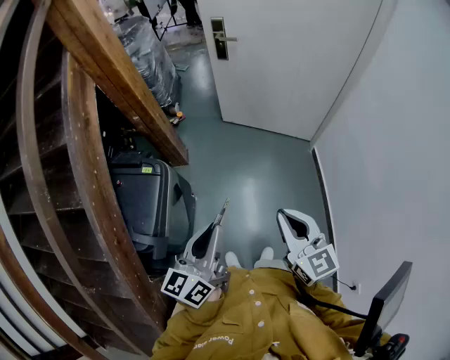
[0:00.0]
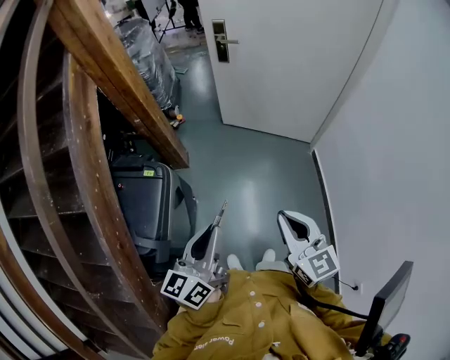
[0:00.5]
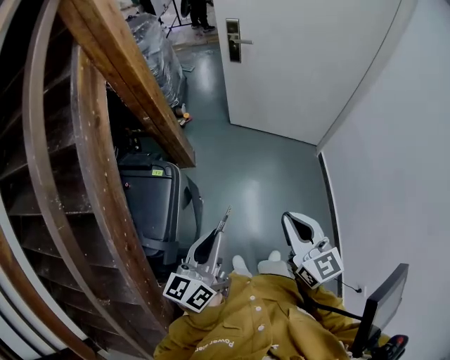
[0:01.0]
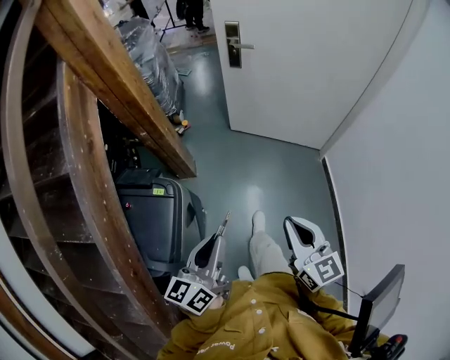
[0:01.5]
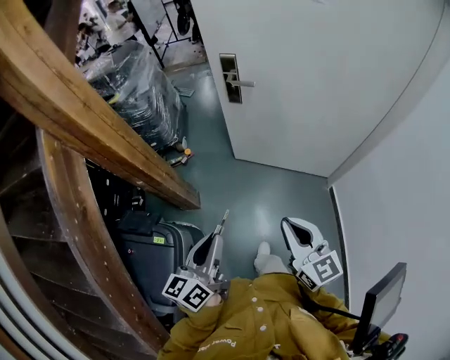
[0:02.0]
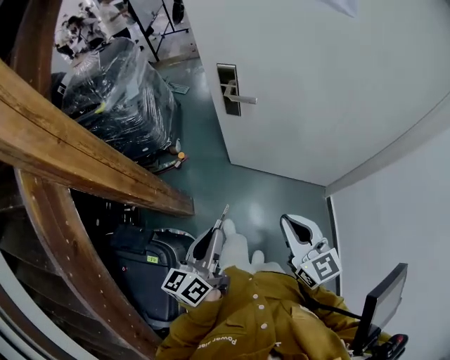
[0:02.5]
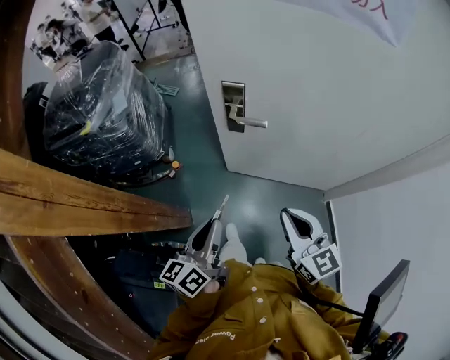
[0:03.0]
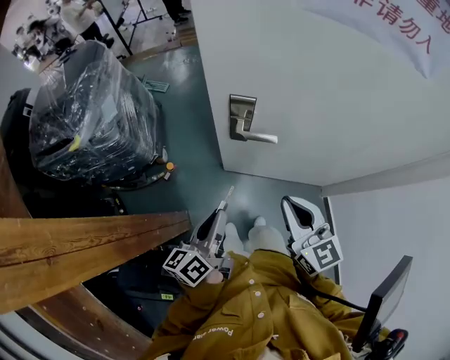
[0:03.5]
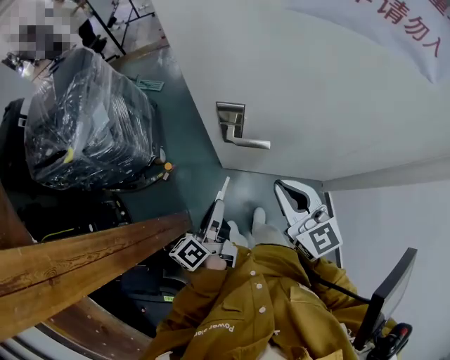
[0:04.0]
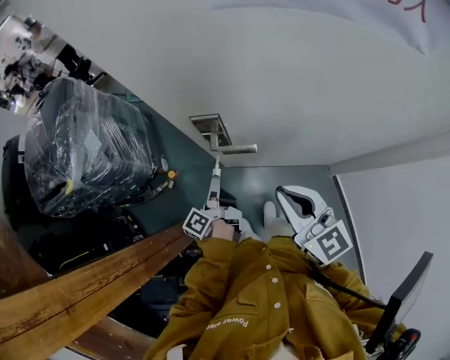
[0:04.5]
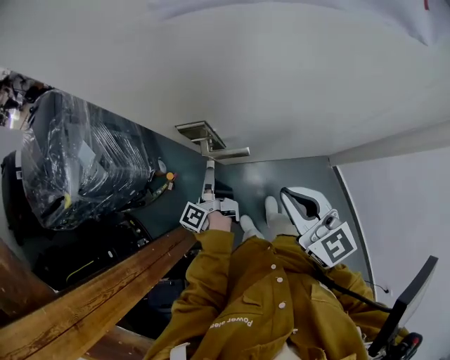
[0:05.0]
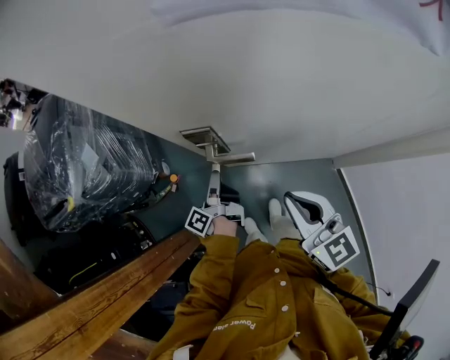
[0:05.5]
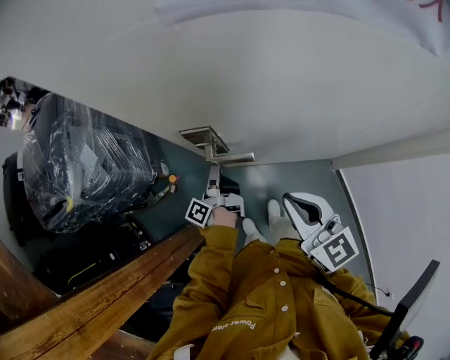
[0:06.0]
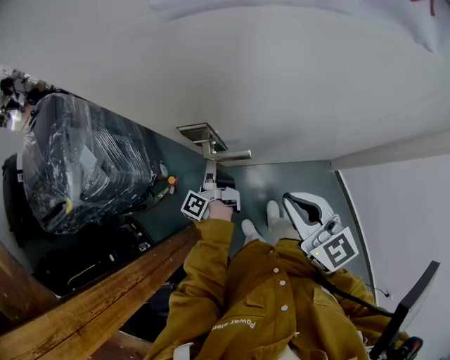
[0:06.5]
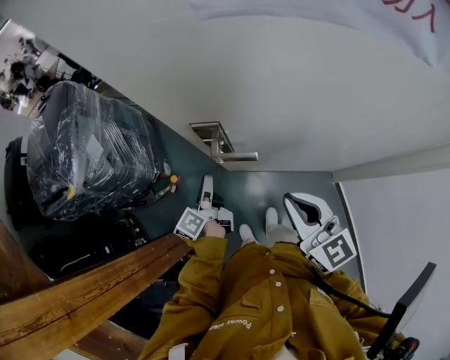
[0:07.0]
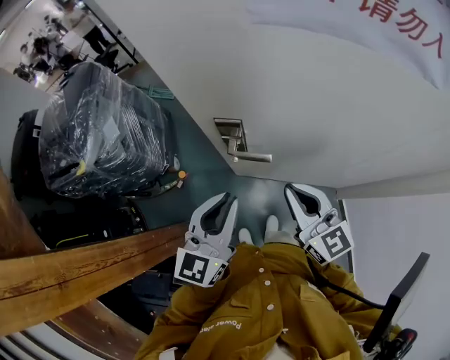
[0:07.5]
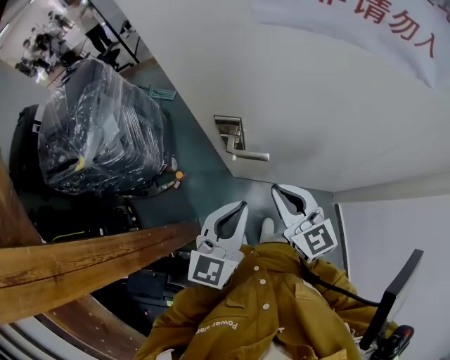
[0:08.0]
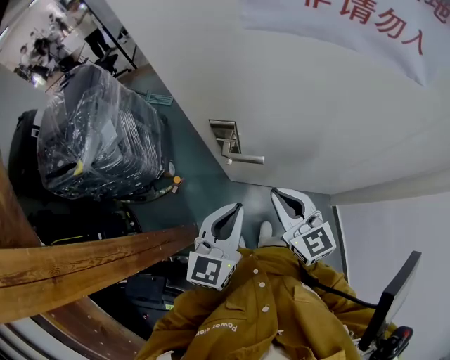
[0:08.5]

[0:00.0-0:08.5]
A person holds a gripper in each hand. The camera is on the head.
0:00.0 to 0:02.0: Both grippers travel together forward, about 35 cm.
0:02.0 to 0:04.0: The pair of grippers is taken forward, roughly 50 cm. The left gripper swivels some 30 degrees.
0:04.0 to 0:06.5: The right gripper goes about 5 cm to the right. The left gripper moves forward and downward, about 20 cm.
0:06.5 to 0:08.5: The left gripper heads upward and backward, covering roughly 25 cm, and rolls clockwise, seen from behind, by roughly 80 degrees.

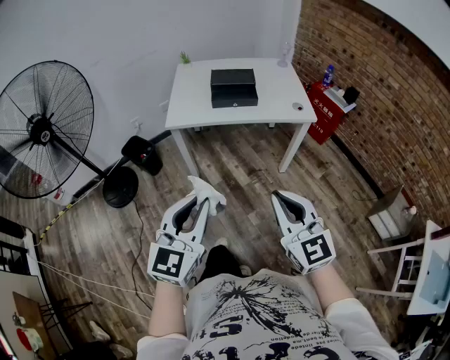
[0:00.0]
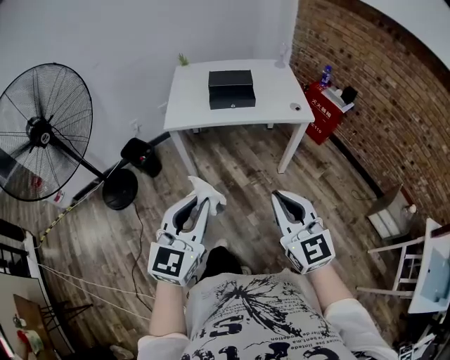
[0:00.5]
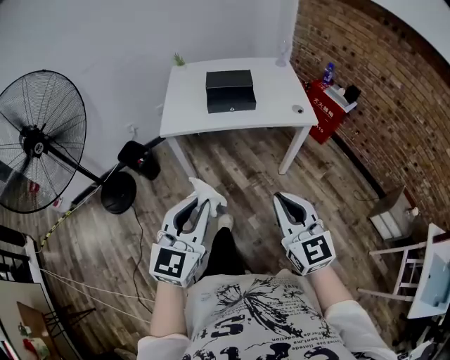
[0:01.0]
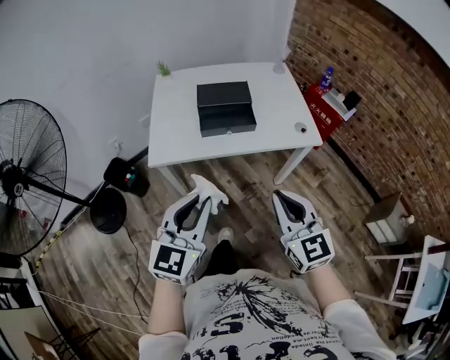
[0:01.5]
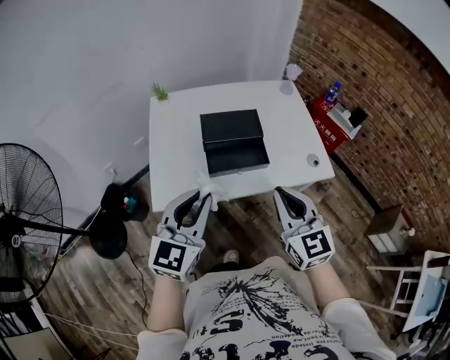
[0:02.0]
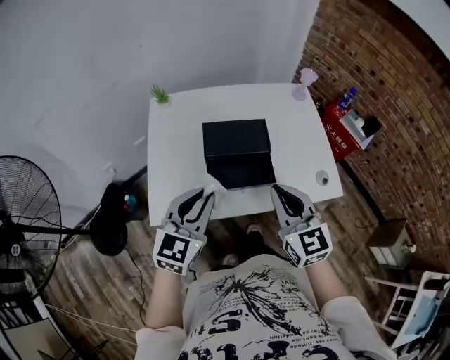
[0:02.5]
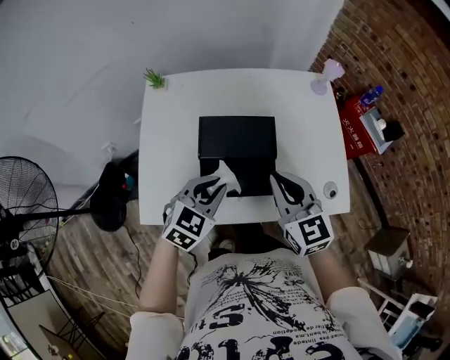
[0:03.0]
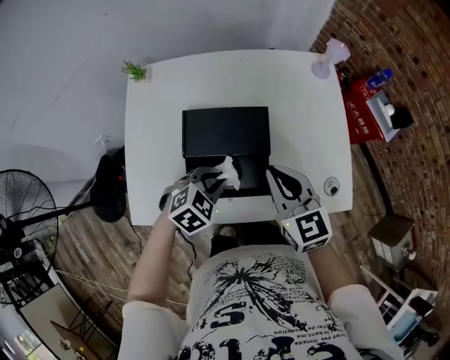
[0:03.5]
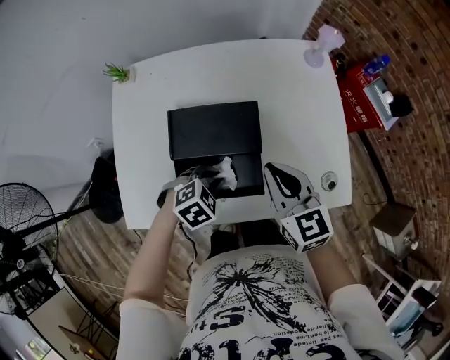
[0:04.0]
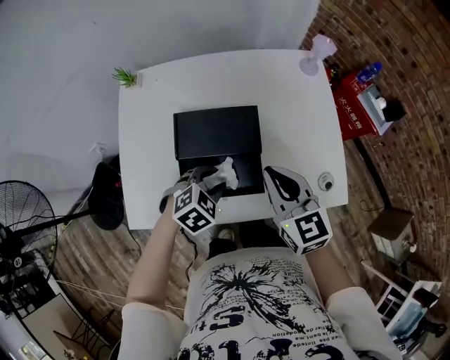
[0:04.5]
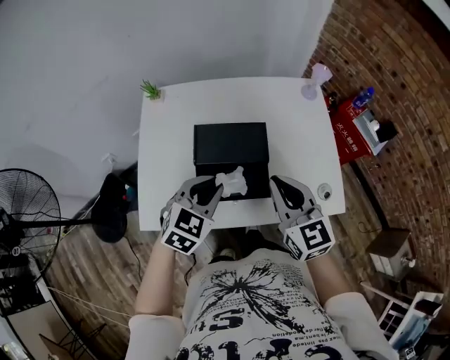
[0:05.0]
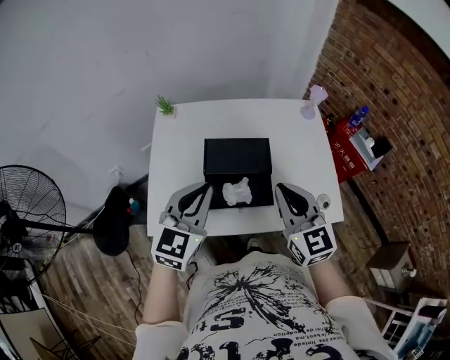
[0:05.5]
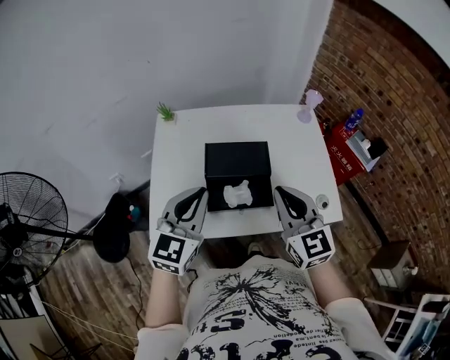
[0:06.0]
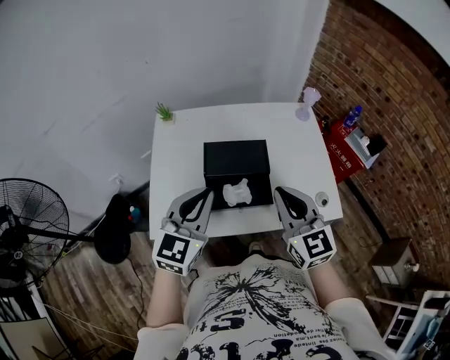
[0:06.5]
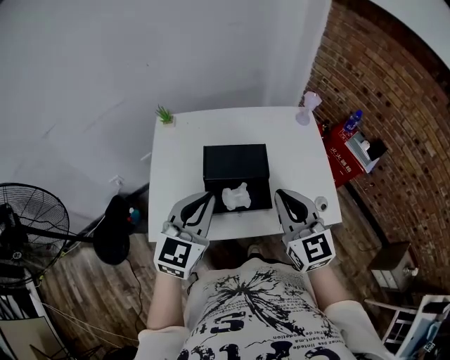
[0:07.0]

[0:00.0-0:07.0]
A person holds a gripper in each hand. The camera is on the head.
0:00.0 to 0:02.0: The two grippers travel together, forward, some 50 cm.
0:02.0 to 0:03.5: Both grippers travel together forward and downward, some 35 cm. The left gripper points its fingers approximately 50 degrees further downward.
0:03.5 to 0:05.0: The left gripper travels upward by about 15 cm, and turns by about 20 degrees. Meanwhile the right gripper moves upward and backward, roughly 10 cm.
0:05.0 to 0:07.0: The right gripper travels upward and backward by some 10 cm. Meanwhile the left gripper moves upward and backward, some 15 cm, and swivels approximately 20 degrees.

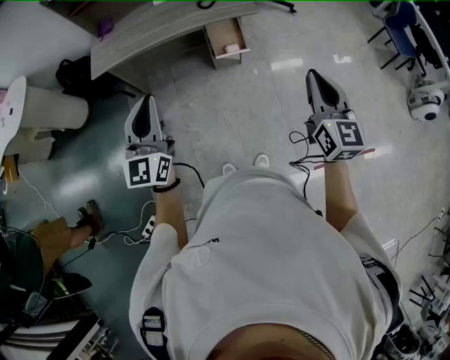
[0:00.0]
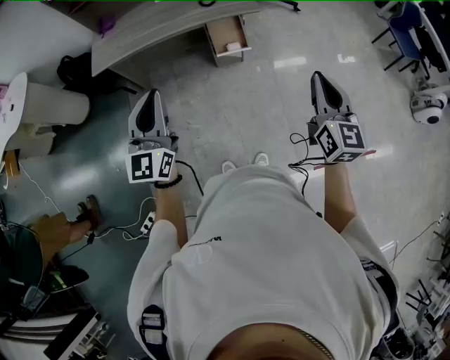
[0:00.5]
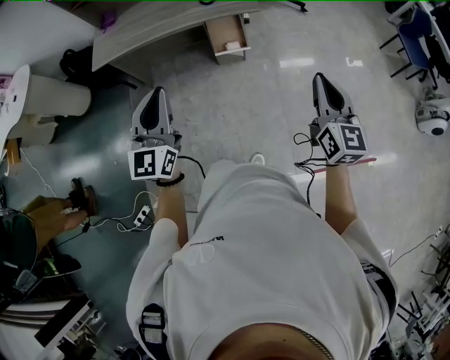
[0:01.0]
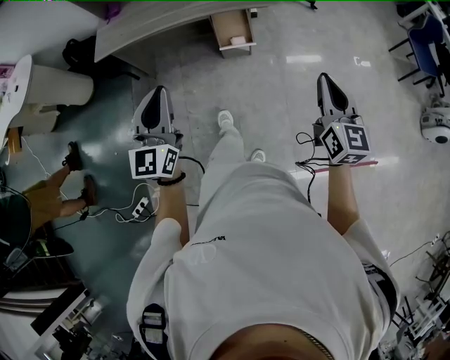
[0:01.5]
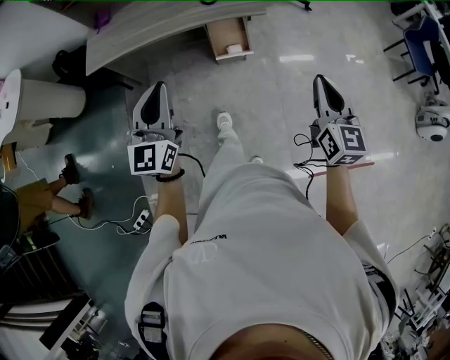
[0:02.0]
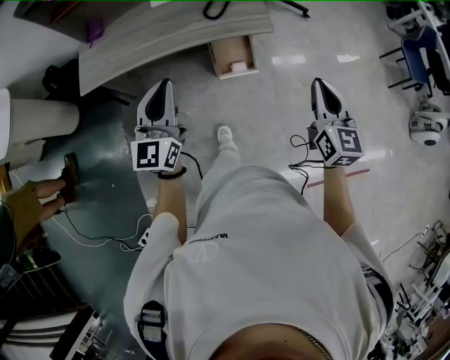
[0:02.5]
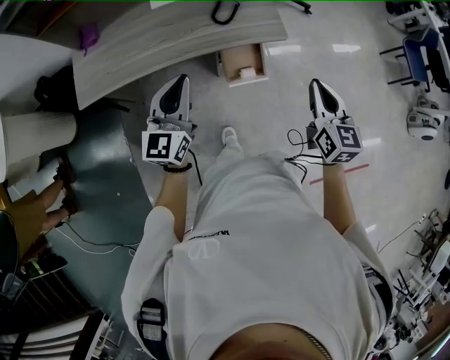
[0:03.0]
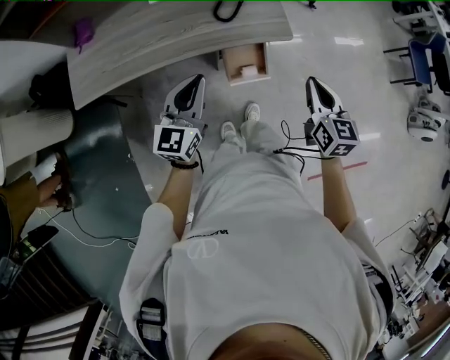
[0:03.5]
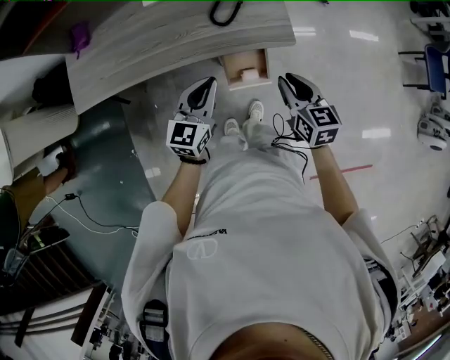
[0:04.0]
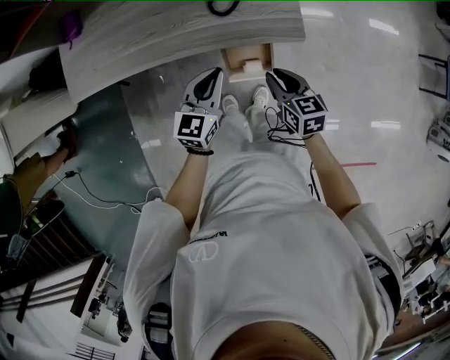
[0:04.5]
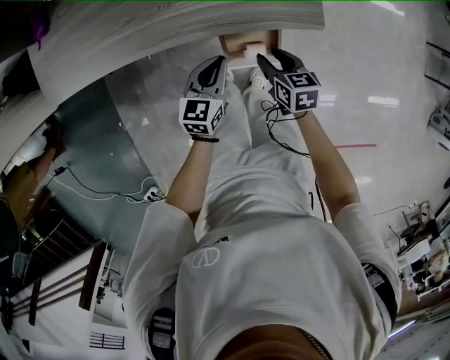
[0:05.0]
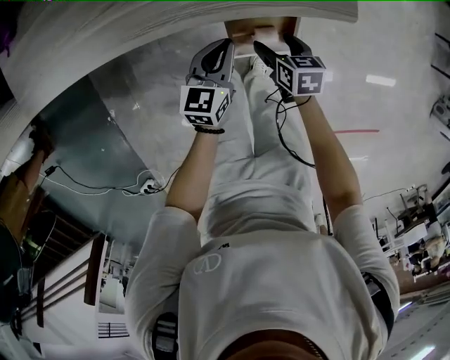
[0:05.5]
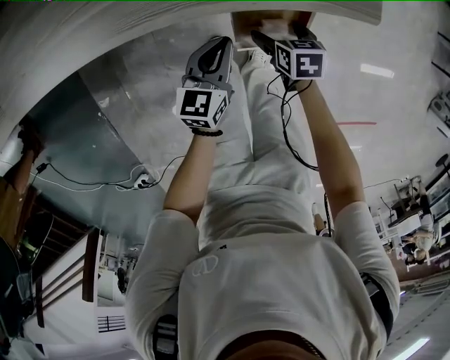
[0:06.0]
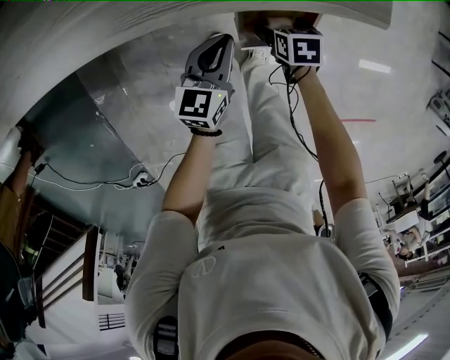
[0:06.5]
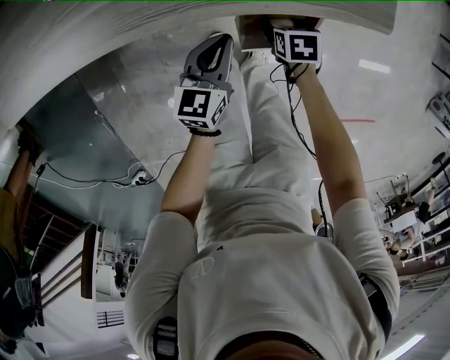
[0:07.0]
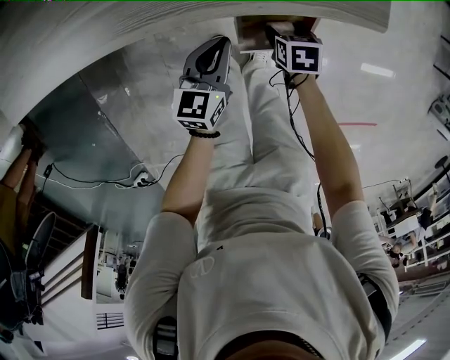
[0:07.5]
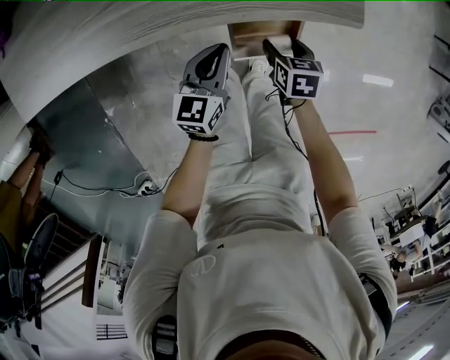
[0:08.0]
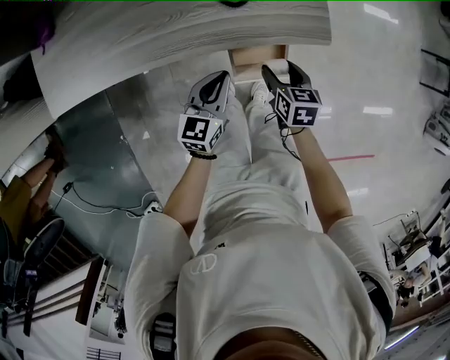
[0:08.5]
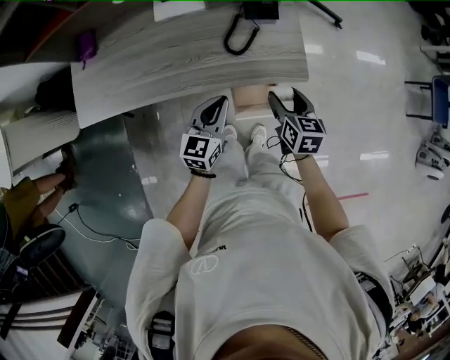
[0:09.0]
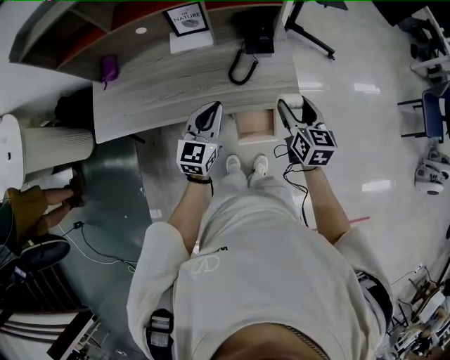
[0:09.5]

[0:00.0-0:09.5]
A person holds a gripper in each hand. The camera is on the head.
0:00.0 to 0:02.0: The left gripper shifts about 15 cm forward, to the right and downward, while the right gripper shifts roughly 15 cm forward, downward and to the right.
0:02.0 to 0:04.0: The right gripper travels forward, downward and to the left by approximately 40 cm, and changes its angle by about 30 degrees, while the left gripper moves forward and downward, approximately 40 cm, and turns by approximately 30 degrees.
0:04.0 to 0:05.5: Both grippers move downward, about 35 cm. The left gripper rotates some 20 degrees. The right gripper rotates some 30 degrees, and opens up.
0:05.5 to 0:07.5: The right gripper is displaced downward by approximately 5 cm.
0:07.5 to 0:09.5: The two grippers go approximately 40 cm upward. The right gripper tips its fingers upward by approximately 50 degrees; the left gripper turns by roughly 30 degrees.

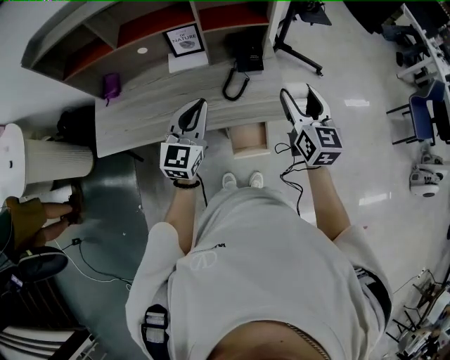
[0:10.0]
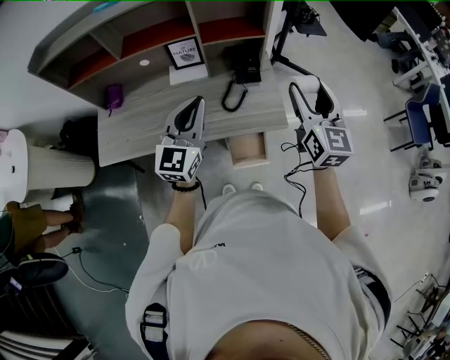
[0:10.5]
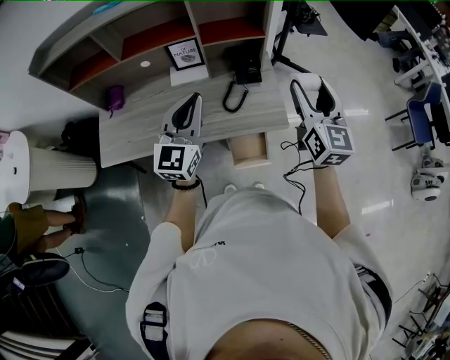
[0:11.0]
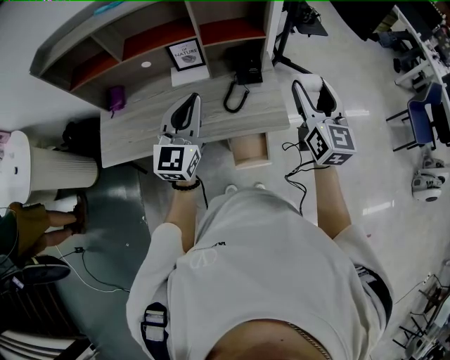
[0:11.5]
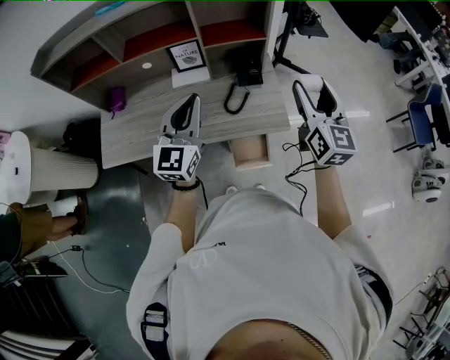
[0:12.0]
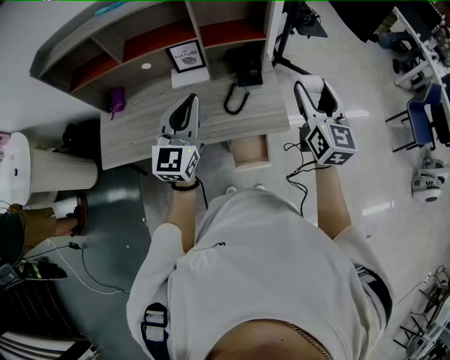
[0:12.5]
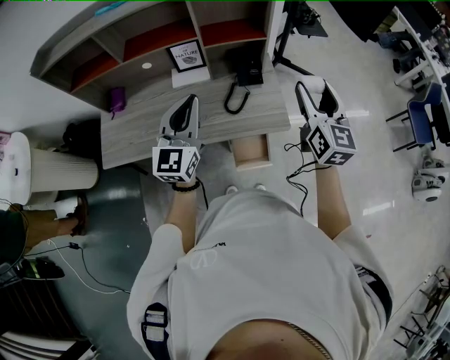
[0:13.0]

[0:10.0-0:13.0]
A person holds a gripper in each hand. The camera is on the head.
0:10.0 to 0:11.5: The grippers both shift upward by roughly 10 cm.
0:11.5 to 0:13.0: Both grippers stay about where they are.
